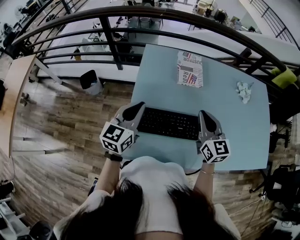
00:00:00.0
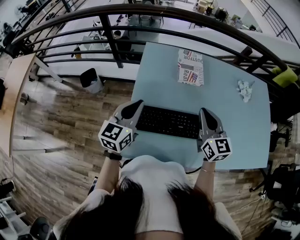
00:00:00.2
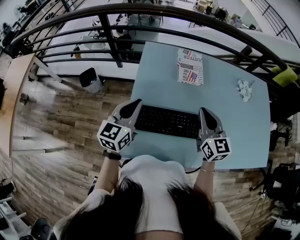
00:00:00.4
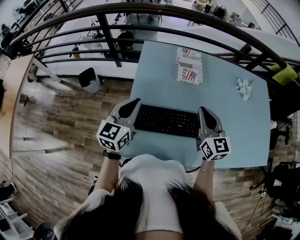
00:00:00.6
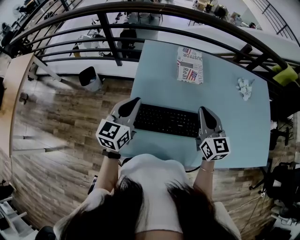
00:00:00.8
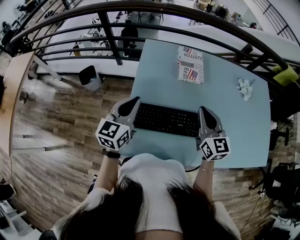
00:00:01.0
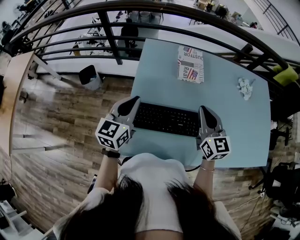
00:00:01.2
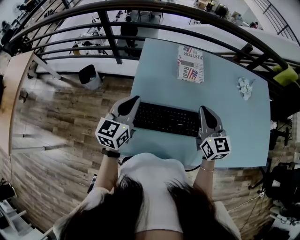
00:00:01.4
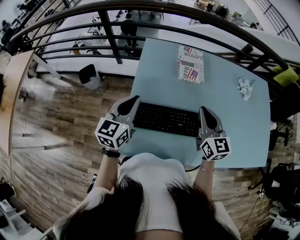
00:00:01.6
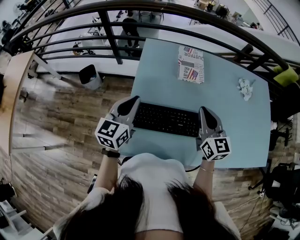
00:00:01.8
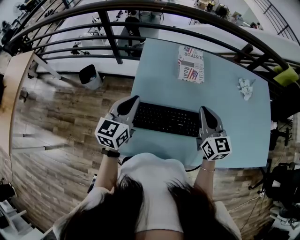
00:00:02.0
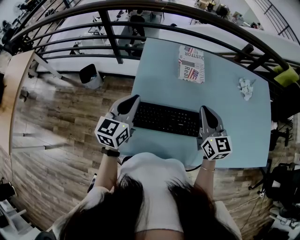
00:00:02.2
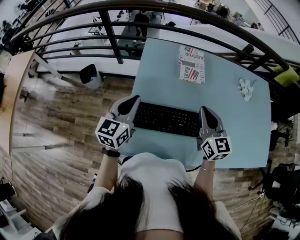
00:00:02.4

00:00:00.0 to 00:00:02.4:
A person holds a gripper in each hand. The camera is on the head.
00:00:00.0 to 00:00:01.2: The grippers stay close to where they were, moving slightly.
00:00:01.2 to 00:00:02.4: Both grippers stay put.

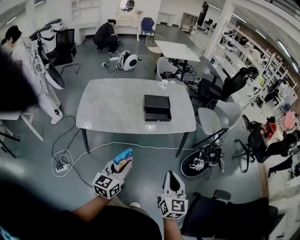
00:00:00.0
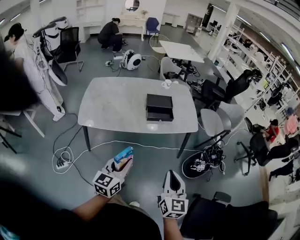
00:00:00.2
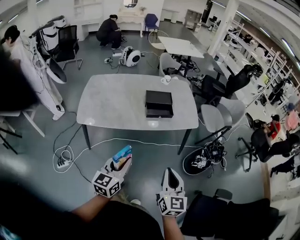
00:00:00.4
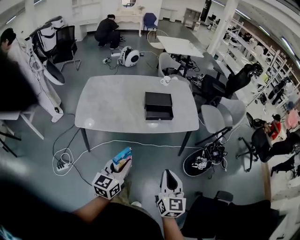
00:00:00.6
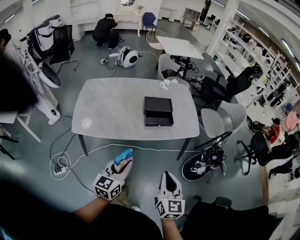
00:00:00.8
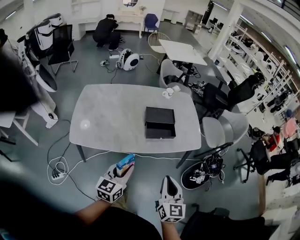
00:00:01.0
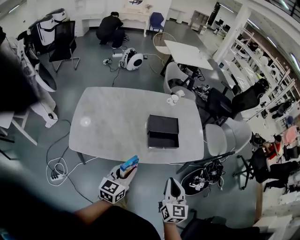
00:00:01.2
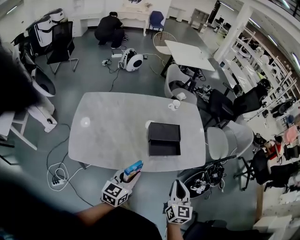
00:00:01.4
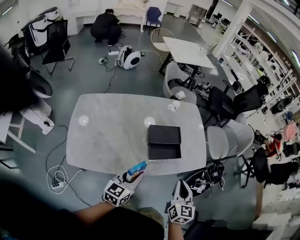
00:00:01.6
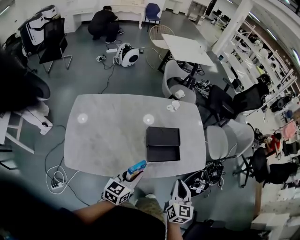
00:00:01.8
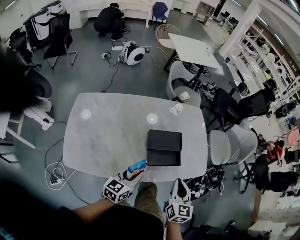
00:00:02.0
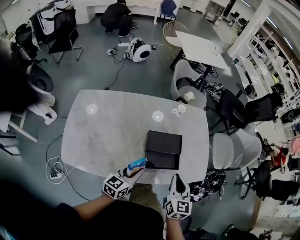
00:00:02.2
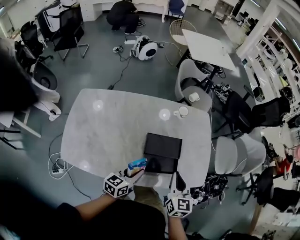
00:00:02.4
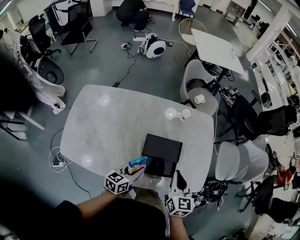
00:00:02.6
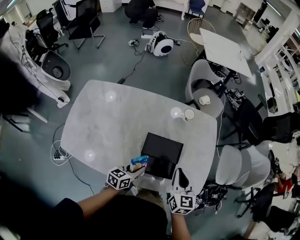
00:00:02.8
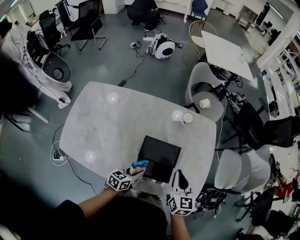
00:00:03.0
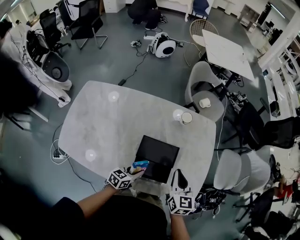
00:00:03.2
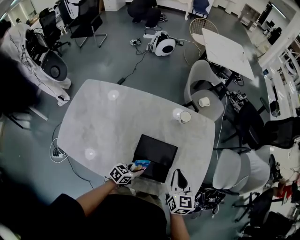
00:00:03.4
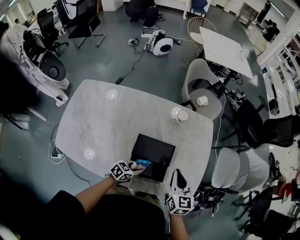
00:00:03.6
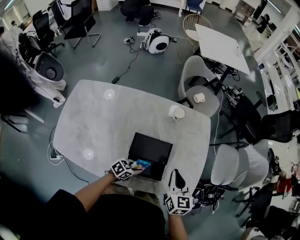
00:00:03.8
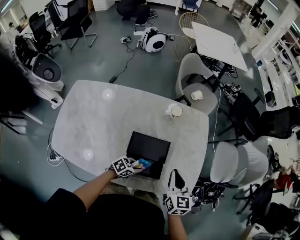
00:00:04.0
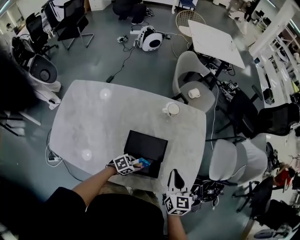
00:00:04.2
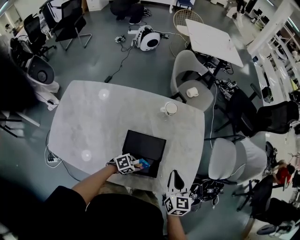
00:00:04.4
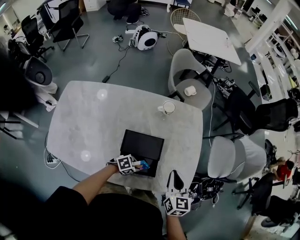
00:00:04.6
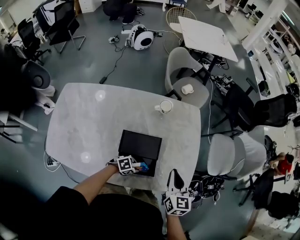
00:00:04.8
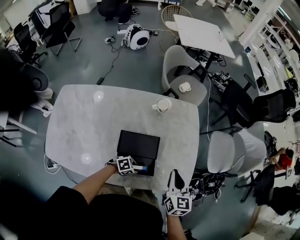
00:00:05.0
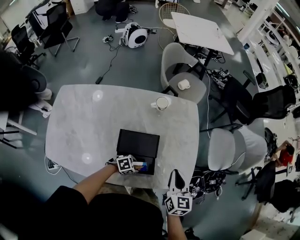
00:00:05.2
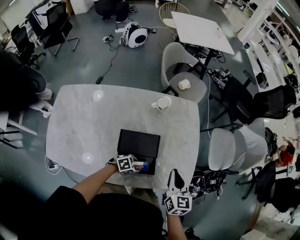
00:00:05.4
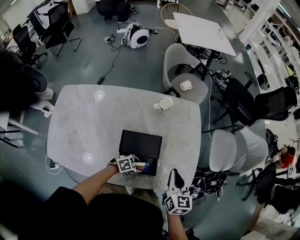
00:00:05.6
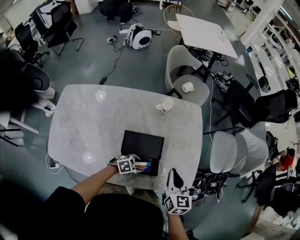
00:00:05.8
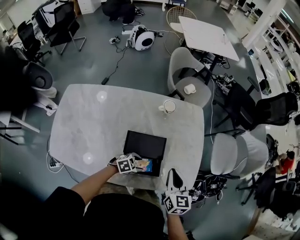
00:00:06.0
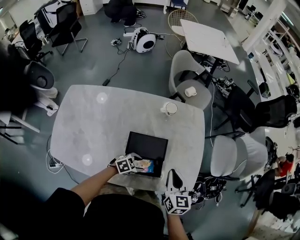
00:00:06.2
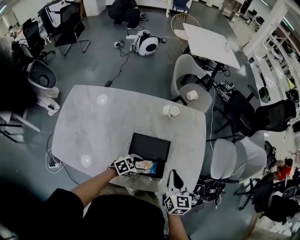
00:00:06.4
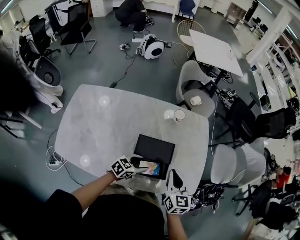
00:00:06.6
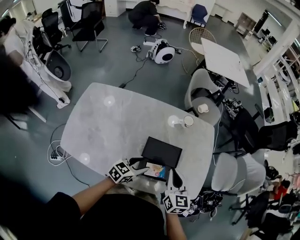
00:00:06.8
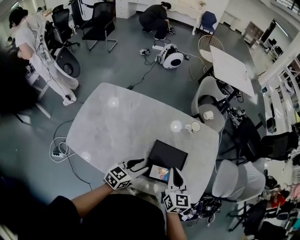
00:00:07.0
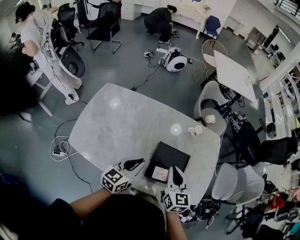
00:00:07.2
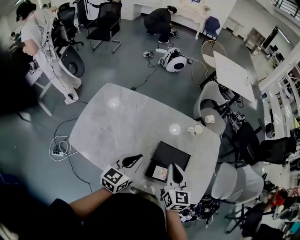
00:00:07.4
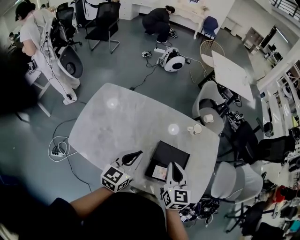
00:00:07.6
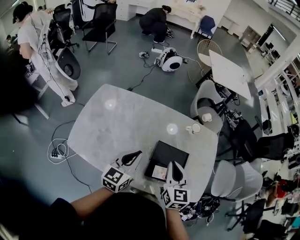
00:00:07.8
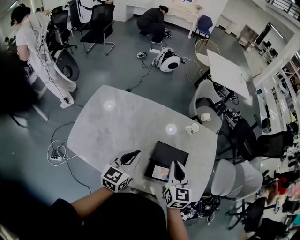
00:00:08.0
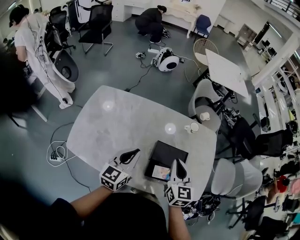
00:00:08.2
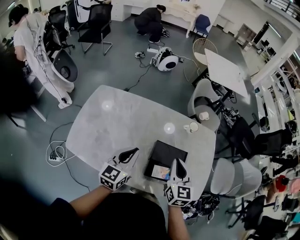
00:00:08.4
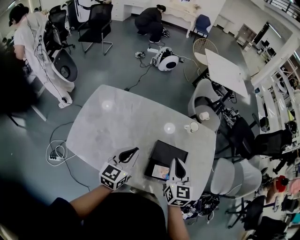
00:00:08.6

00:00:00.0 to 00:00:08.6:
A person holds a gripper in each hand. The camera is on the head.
00:00:00.0 to 00:00:01.4: Both grippers move forward, about 30 cm.
00:00:01.4 to 00:00:02.8: The right gripper heads forward, covering some 30 cm, and turns by some 20 degrees. The left gripper heads forward and downward, covering roughly 30 cm, and changes its angle by roughly 20 degrees.
00:00:02.8 to 00:00:04.4: The left gripper heads downward, covering roughly 15 cm, and swivels some 60 degrees. The right gripper ends up about 10 cm from where it was.
00:00:04.4 to 00:00:05.8: The left gripper opens.
00:00:05.8 to 00:00:07.2: The left gripper heads upward, covering approximately 30 cm, angles its fingers upward, by roughly 40 degrees, and closes up. Meanwhile the right gripper shifts by roughly 25 cm.
00:00:07.2 to 00:00:08.6: The left gripper travels to the left by roughly 5 cm.

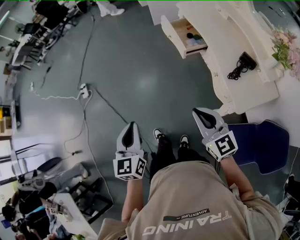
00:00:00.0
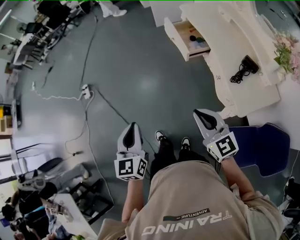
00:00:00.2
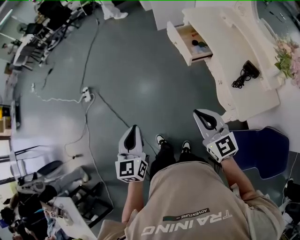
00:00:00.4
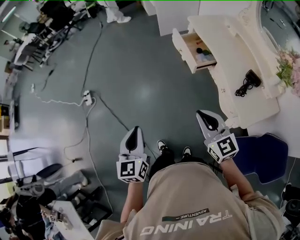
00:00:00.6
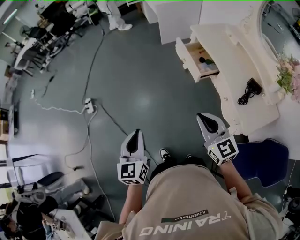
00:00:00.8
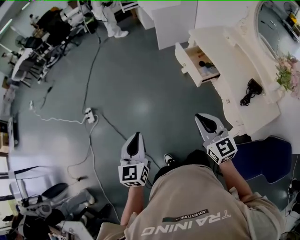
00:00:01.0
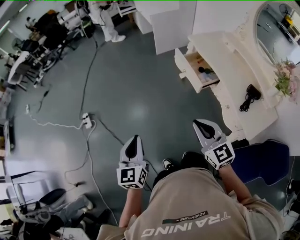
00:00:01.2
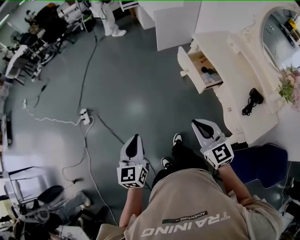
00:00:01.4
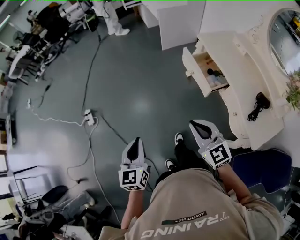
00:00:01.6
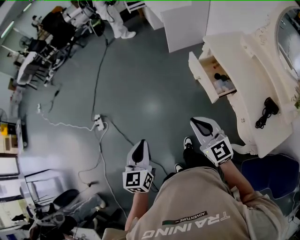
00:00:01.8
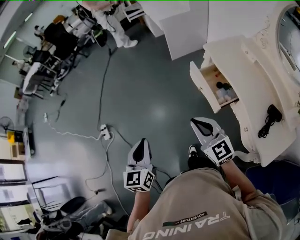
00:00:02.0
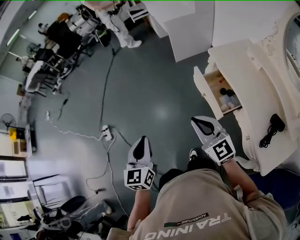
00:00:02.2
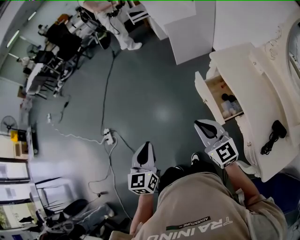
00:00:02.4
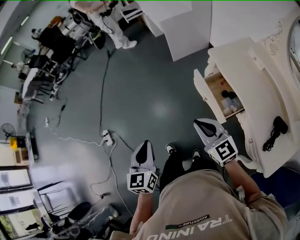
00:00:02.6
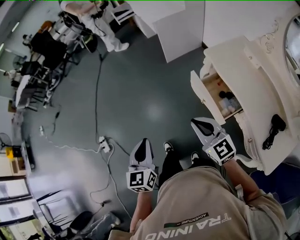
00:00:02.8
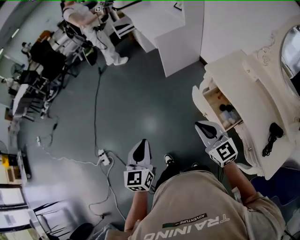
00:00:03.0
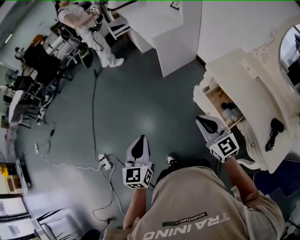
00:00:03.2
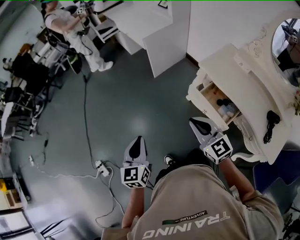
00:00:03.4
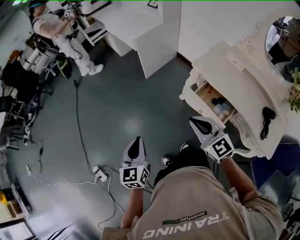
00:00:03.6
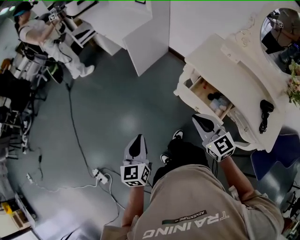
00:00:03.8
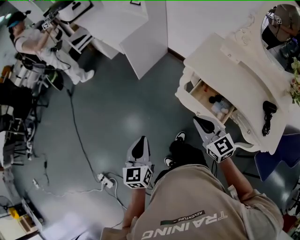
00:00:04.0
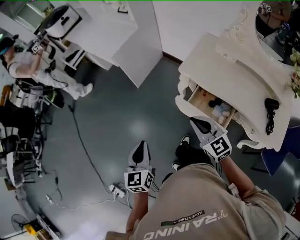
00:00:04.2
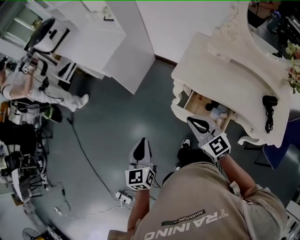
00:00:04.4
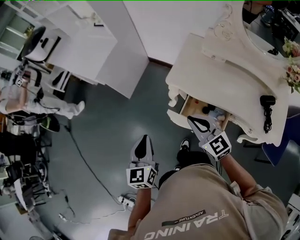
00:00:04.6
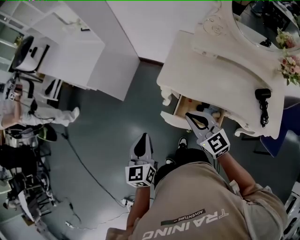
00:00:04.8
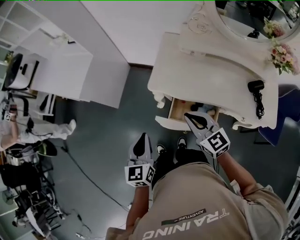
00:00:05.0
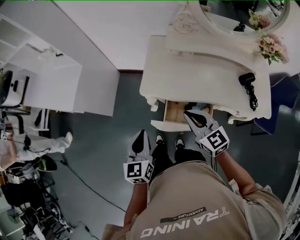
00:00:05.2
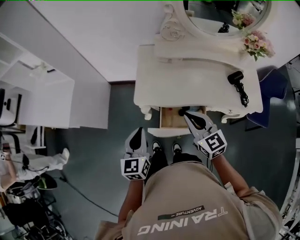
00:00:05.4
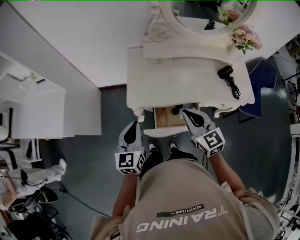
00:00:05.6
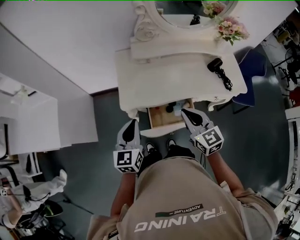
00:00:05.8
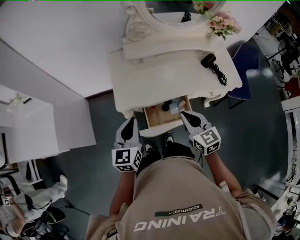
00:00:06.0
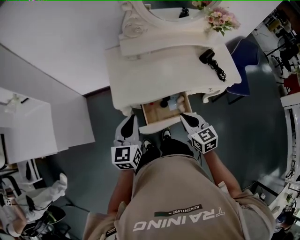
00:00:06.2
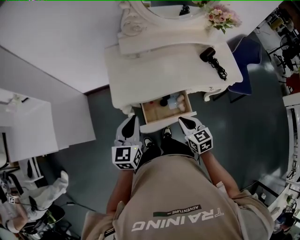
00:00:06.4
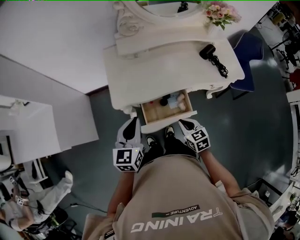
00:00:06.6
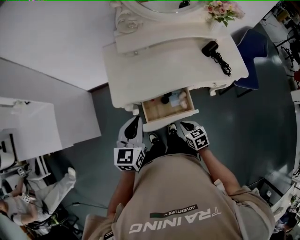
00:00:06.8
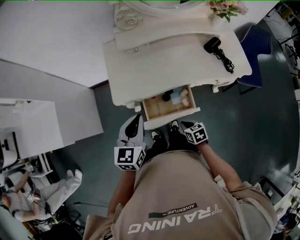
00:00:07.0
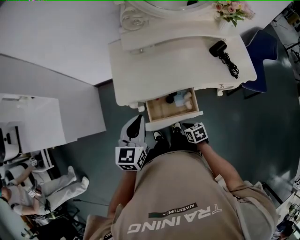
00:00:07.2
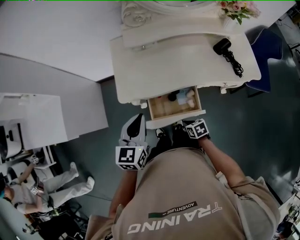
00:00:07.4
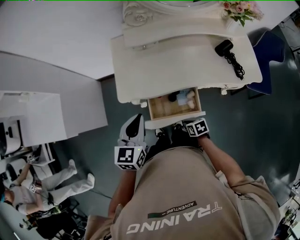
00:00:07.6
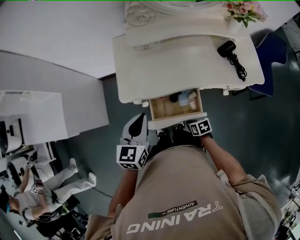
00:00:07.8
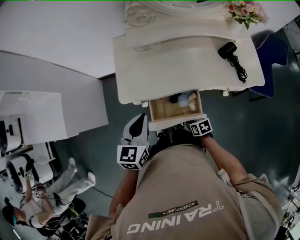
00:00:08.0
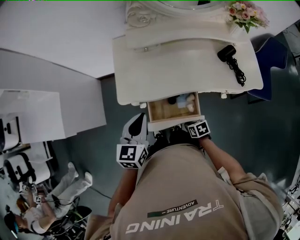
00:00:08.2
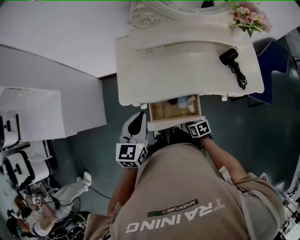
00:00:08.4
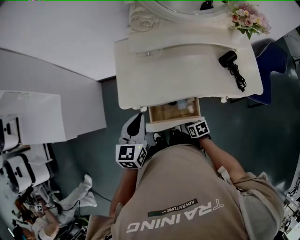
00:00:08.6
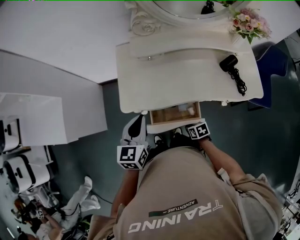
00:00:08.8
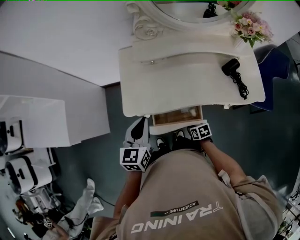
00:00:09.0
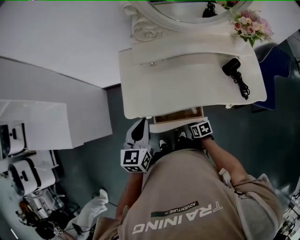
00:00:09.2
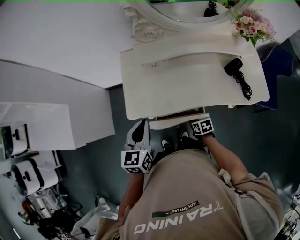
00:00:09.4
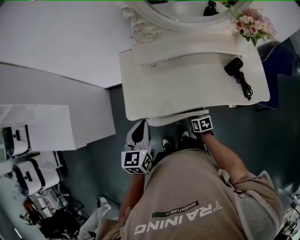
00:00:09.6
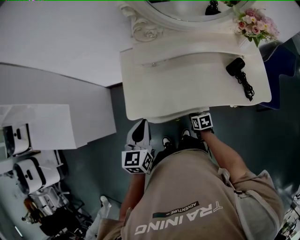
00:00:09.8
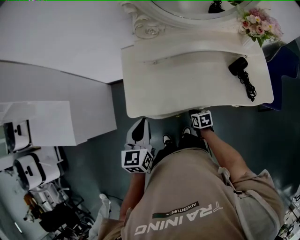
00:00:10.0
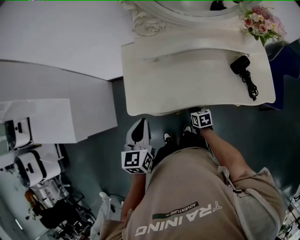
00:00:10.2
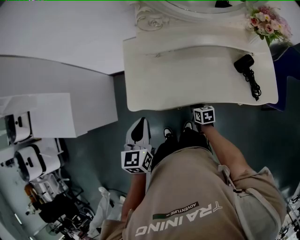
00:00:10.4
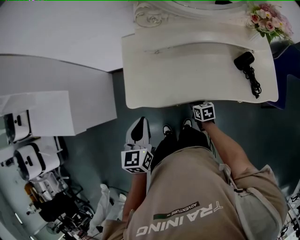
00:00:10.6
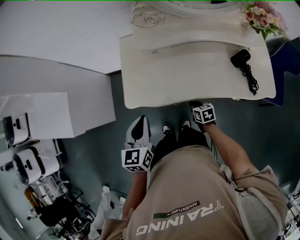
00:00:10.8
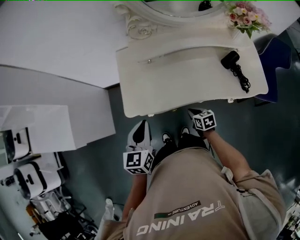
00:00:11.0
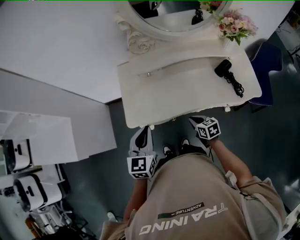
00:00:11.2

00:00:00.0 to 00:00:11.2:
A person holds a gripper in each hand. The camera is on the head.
00:00:00.0 to 00:00:01.6: Both grippers move forward and to the left, some 25 cm.
00:00:01.6 to 00:00:03.2: The grippers both shift forward by approximately 35 cm.
00:00:03.2 to 00:00:04.8: The left gripper ends up about 35 cm from where it was, and turns by approximately 30 degrees, while the right gripper shifts by approximately 25 cm, and rotates about 30 degrees.
00:00:04.8 to 00:00:06.4: The right gripper shifts by roughly 15 cm, and turns by some 50 degrees; the left gripper moves some 15 cm, and swivels some 40 degrees.
00:00:06.4 to 00:00:08.0: The right gripper heads downward, covering roughly 20 cm, and turns by roughly 40 degrees, while the left gripper heads to the right, covering roughly 5 cm.
00:00:08.0 to 00:00:09.6: The left gripper is displaced forward by some 5 cm, while the right gripper shifts roughly 15 cm forward and to the right.
00:00:09.6 to 00:00:11.2: The right gripper is displaced upward by about 10 cm.

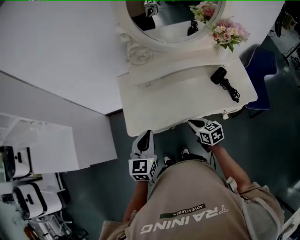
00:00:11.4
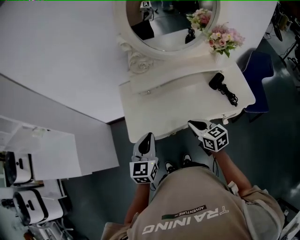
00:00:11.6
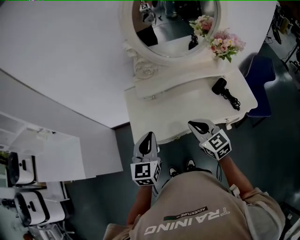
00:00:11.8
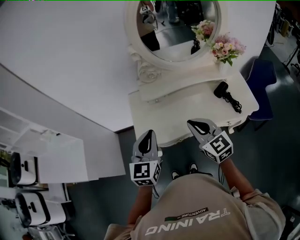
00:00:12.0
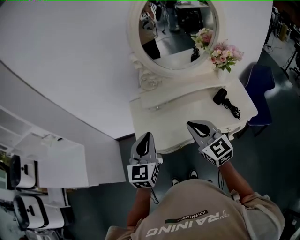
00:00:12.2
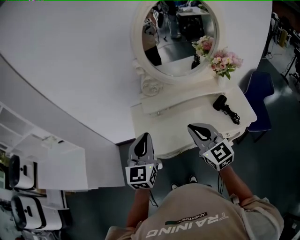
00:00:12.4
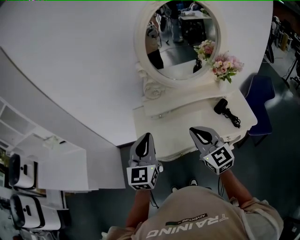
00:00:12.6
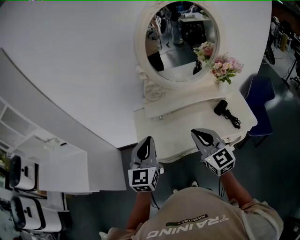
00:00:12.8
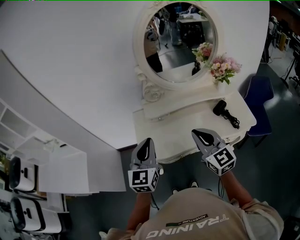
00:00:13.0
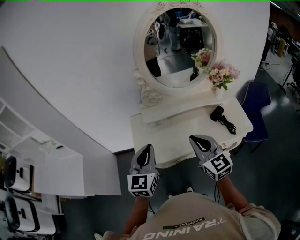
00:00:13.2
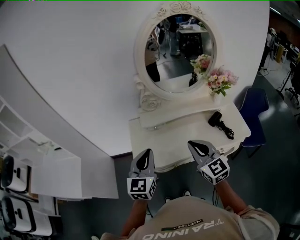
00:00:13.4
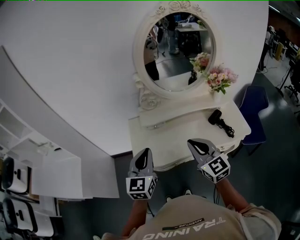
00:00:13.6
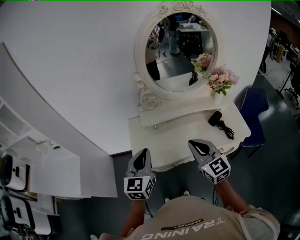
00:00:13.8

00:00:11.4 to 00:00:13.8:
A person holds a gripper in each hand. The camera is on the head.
00:00:11.4 to 00:00:12.6: The left gripper is displaced upward by approximately 15 cm, while the right gripper moves upward, approximately 25 cm, and tilts its fingers about 30 degrees upward.
00:00:12.6 to 00:00:13.8: The grippers stay close to where they were, moving slightly.
